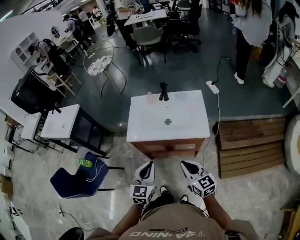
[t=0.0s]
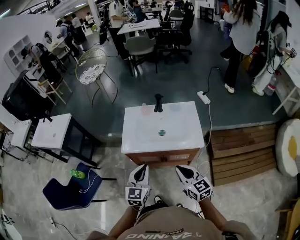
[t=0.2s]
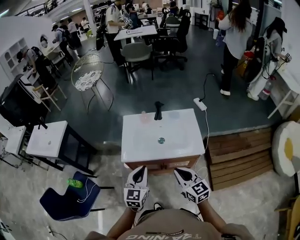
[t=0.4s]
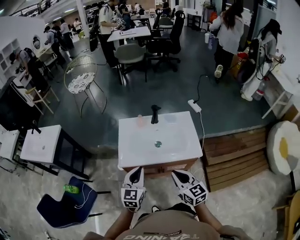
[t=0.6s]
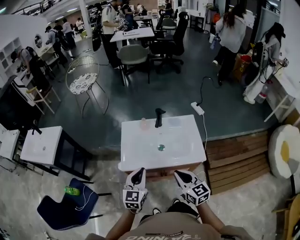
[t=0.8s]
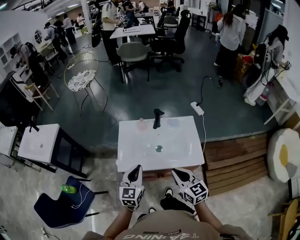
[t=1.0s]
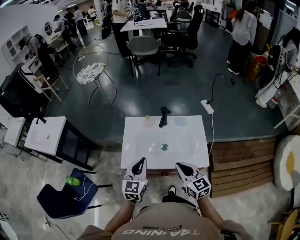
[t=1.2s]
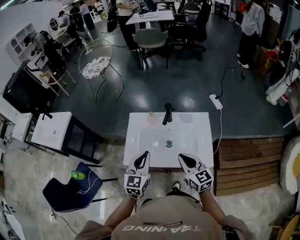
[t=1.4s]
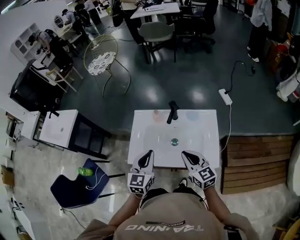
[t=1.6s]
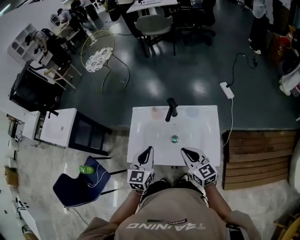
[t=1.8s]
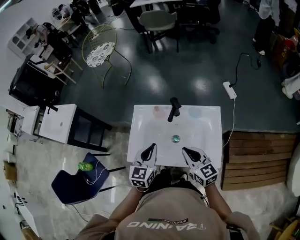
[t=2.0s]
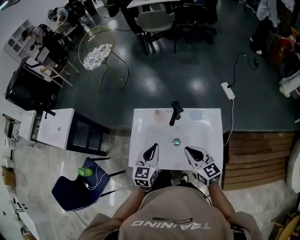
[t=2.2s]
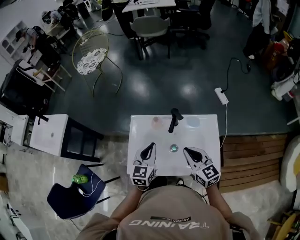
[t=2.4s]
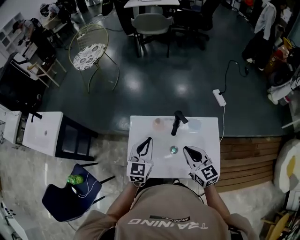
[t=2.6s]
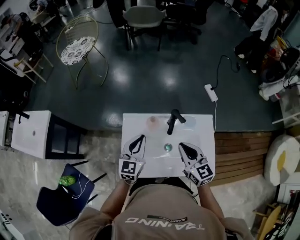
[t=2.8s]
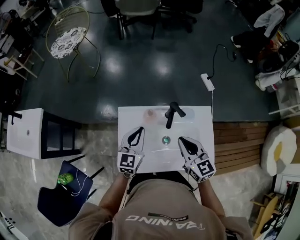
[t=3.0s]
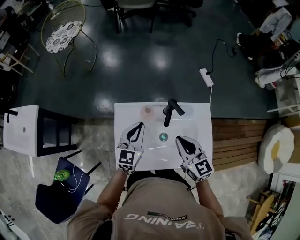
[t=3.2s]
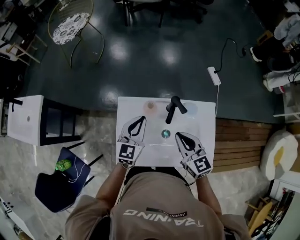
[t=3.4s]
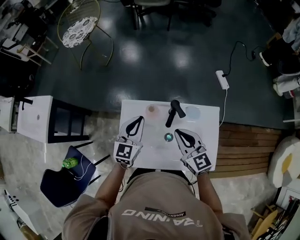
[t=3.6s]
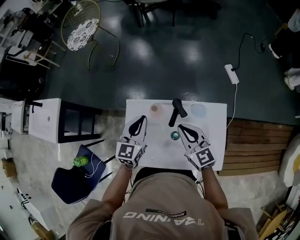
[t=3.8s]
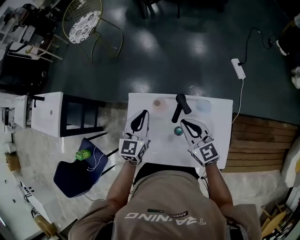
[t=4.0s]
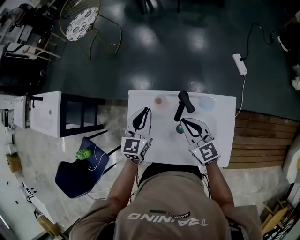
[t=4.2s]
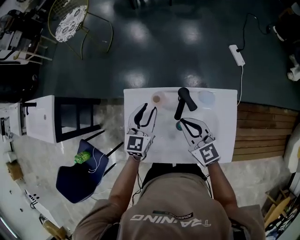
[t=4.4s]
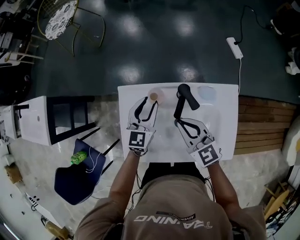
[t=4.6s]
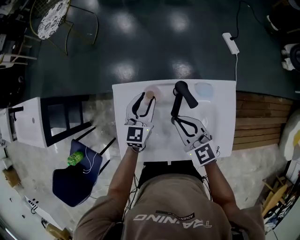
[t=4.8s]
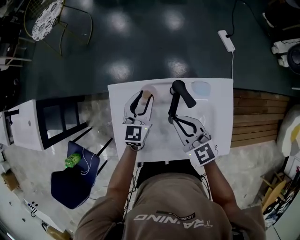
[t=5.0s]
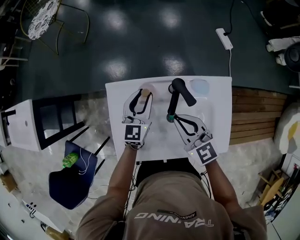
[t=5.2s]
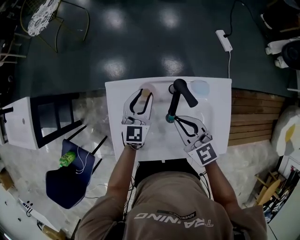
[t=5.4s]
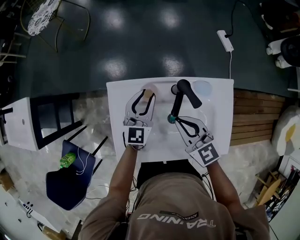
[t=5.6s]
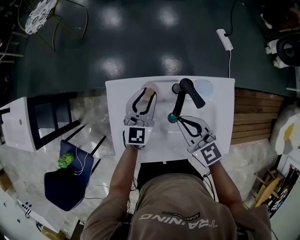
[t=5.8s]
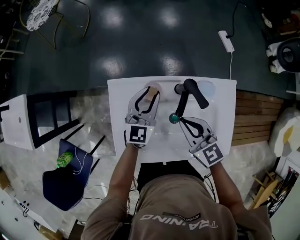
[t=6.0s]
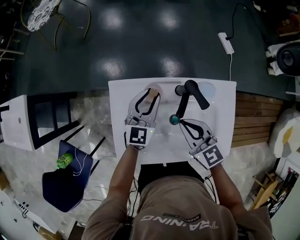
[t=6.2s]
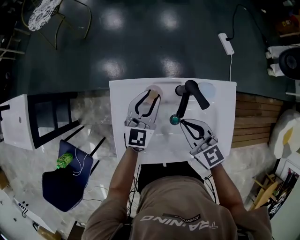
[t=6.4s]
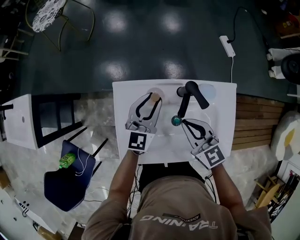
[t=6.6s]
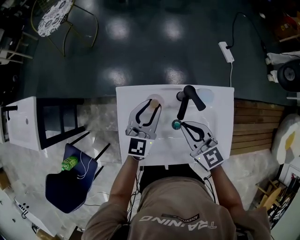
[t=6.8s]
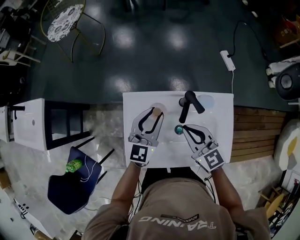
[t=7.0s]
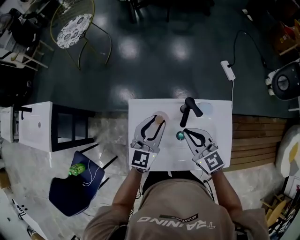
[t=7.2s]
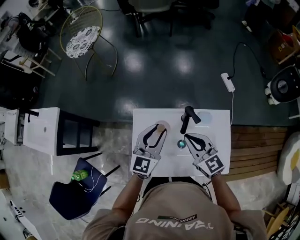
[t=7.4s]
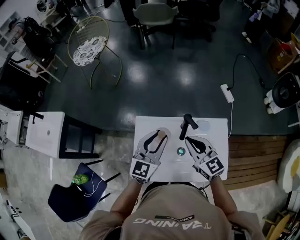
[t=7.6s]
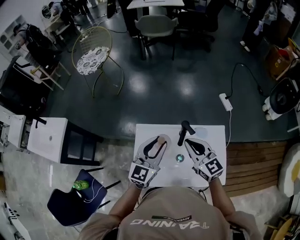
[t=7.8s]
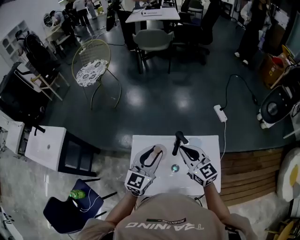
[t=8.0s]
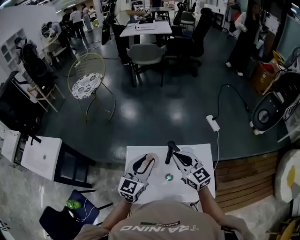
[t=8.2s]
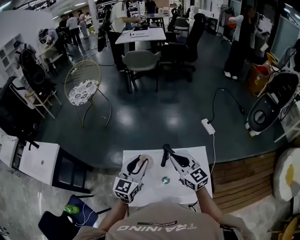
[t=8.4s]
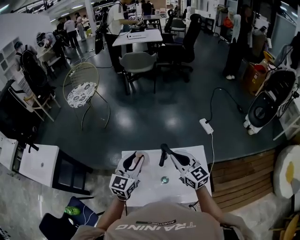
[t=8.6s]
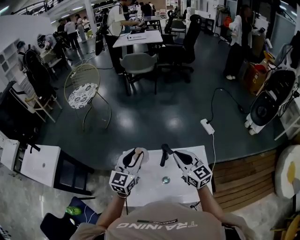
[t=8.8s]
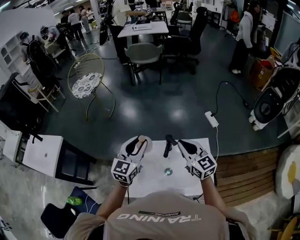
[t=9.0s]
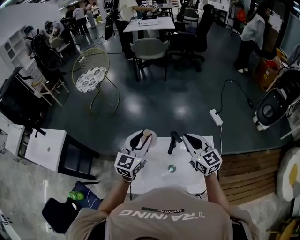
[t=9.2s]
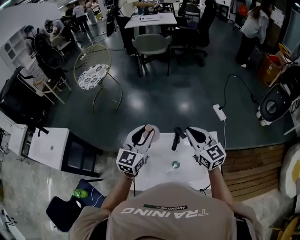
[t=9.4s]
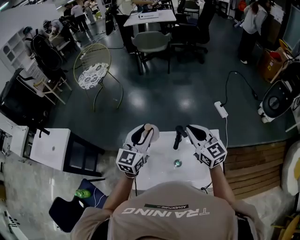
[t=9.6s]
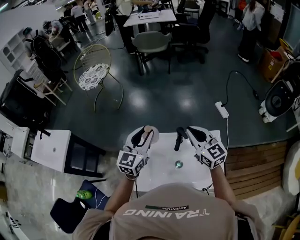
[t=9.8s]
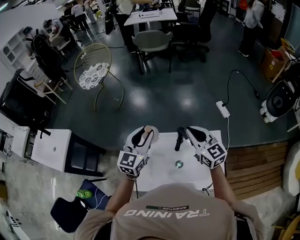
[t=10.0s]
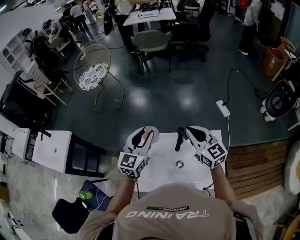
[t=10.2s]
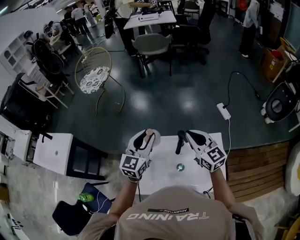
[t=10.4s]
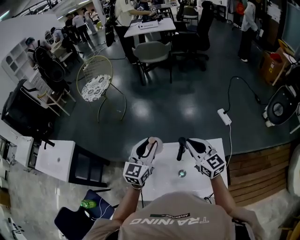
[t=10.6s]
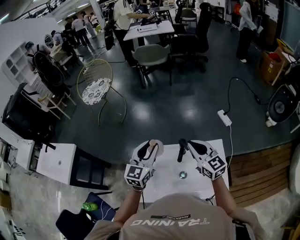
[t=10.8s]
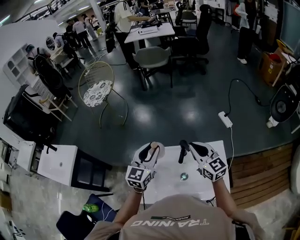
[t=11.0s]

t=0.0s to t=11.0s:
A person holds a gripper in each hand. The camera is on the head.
t=0.0s to t=1.6s: Both grippers move forward, some 25 cm.
t=1.6s to t=3.2s: Both grippers move forward, some 15 cm.
t=3.2s to t=4.8s: The left gripper heads downward and forward, covering approximately 10 cm, and opens up. Meanwhile the right gripper shifts roughly 10 cm downward.
t=4.8s to t=6.2s: The grippers stay close to where they were, moving slightly.
t=6.2s to t=7.8s: The right gripper shifts about 15 cm upward, while the left gripper is displaced upward and backward by roughly 20 cm.
t=7.8s to t=9.4s: Both grippers travel together upward, about 5 cm.
t=9.4s to t=11.0s: The grippers stay close to where they were, moving slightly.

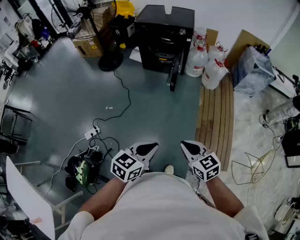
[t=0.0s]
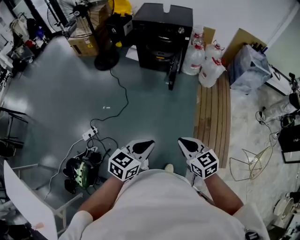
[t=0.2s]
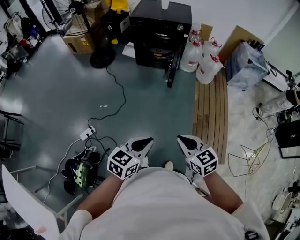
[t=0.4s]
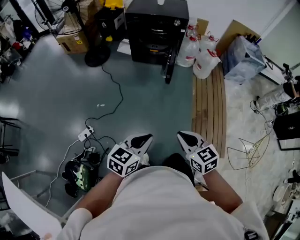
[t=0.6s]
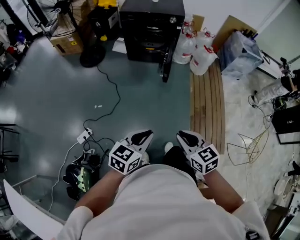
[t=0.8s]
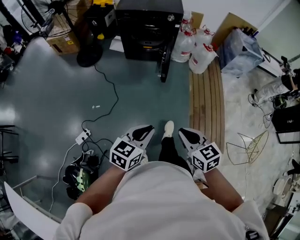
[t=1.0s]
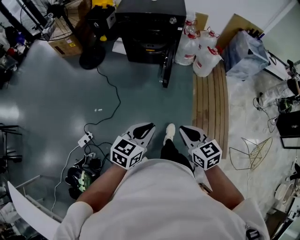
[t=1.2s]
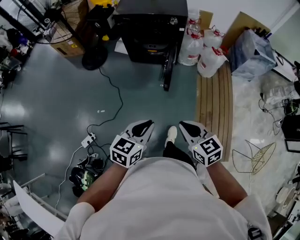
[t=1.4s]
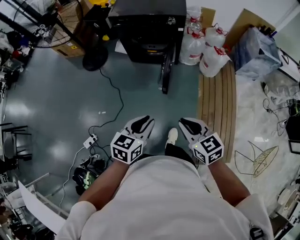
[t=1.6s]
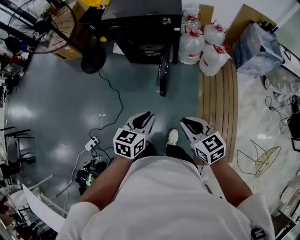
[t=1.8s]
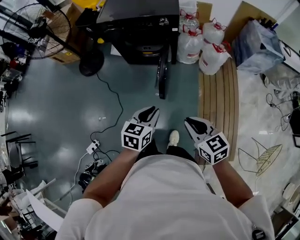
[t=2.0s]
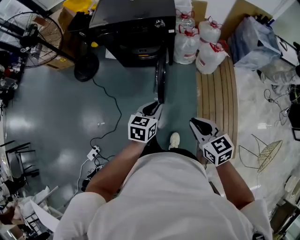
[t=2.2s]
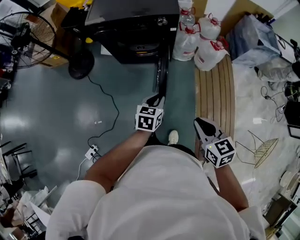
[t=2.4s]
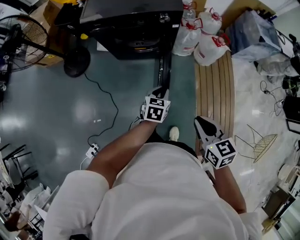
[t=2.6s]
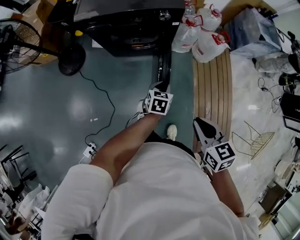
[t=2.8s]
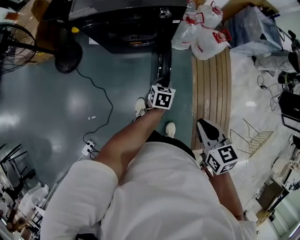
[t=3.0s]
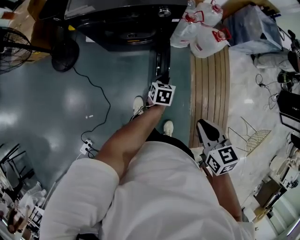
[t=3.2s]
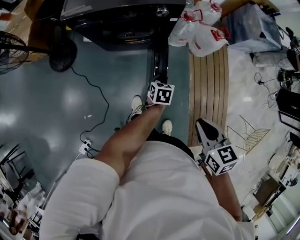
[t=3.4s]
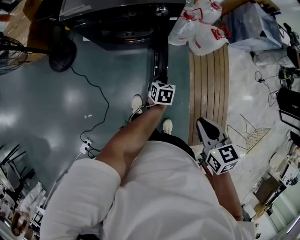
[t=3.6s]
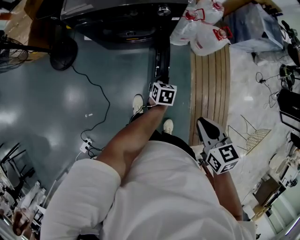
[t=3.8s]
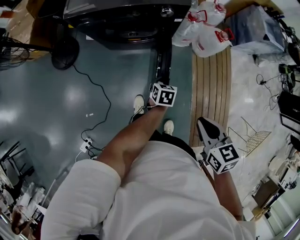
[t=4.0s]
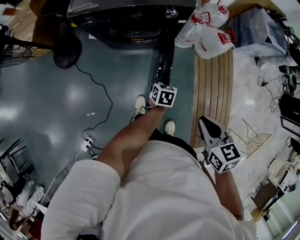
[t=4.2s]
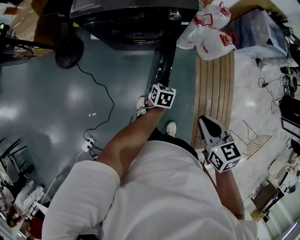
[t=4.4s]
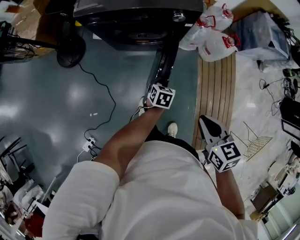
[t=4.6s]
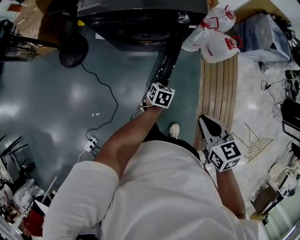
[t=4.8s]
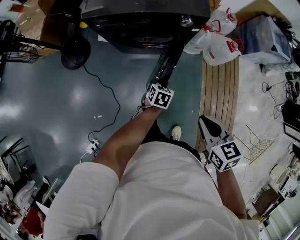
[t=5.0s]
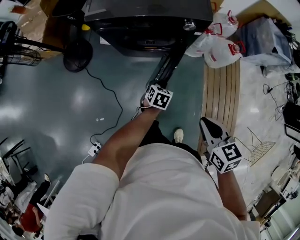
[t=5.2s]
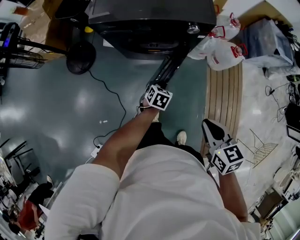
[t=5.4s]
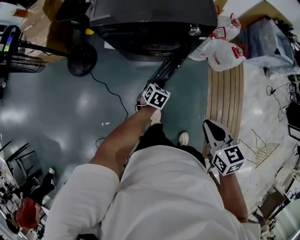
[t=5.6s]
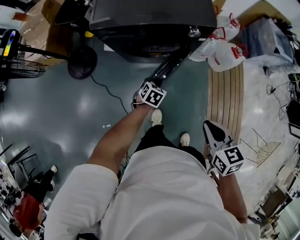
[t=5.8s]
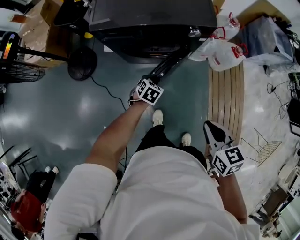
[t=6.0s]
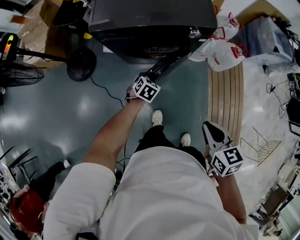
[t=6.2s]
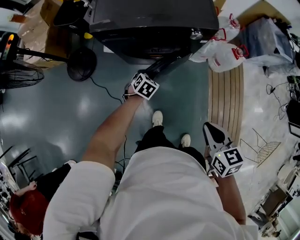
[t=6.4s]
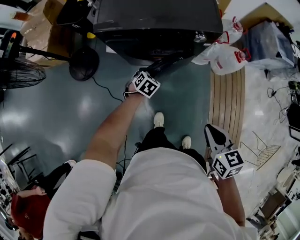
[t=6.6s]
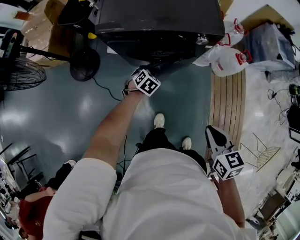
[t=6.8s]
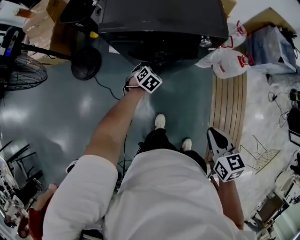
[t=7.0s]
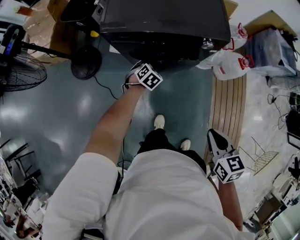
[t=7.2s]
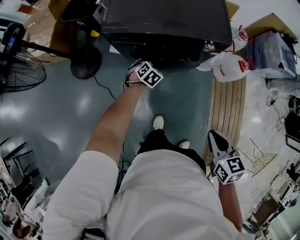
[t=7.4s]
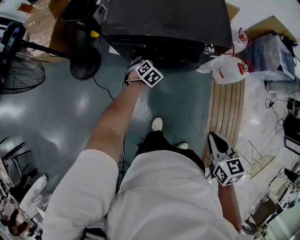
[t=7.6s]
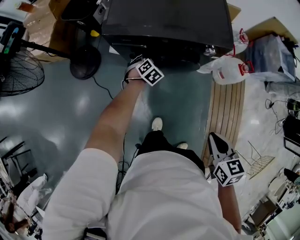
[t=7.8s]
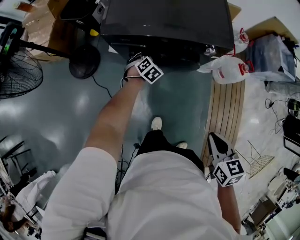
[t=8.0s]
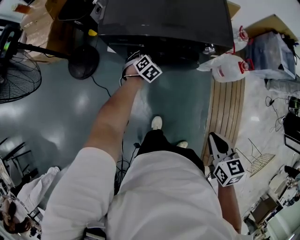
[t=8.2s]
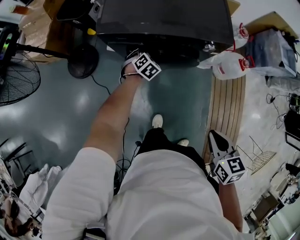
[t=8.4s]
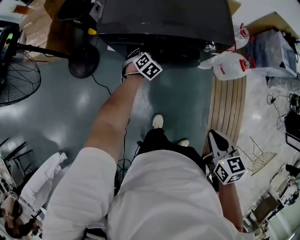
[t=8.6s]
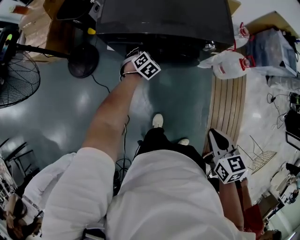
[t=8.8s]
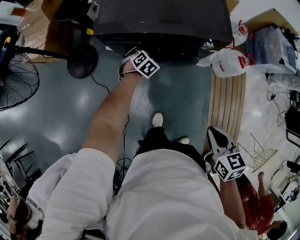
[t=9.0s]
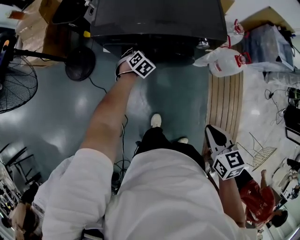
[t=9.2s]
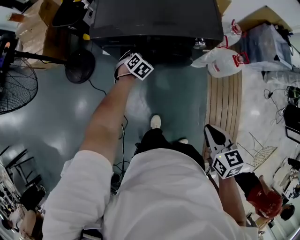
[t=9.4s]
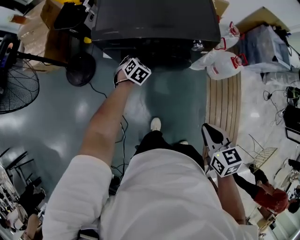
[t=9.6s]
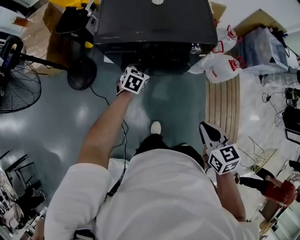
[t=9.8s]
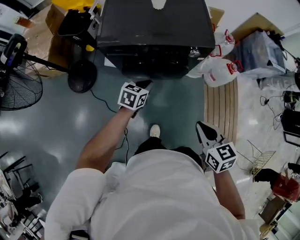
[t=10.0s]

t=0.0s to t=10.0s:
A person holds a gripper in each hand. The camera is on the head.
t=0.0s to t=1.4s: Both grippers move forward, roughly 25 cm.
t=1.4s to t=2.8s: The left gripper moves forward and downward, some 50 cm; the right gripper heads forward, covering some 25 cm, and rotates roughly 20 degrees.
t=2.8s to t=4.2s: The right gripper travels forward by some 5 cm. Meanwhile the left gripper shifts roughly 5 cm downward.
t=4.2s to t=5.8s: The left gripper goes roughly 15 cm to the left and forward. Meanwhile the right gripper shifts about 10 cm to the left and forward.
t=5.8s to t=7.2s: The left gripper goes some 15 cm forward and to the left.
t=7.2s to t=8.6s: The left gripper heads forward, covering approximately 10 cm.
t=8.6s to t=10.0s: The left gripper shifts roughly 20 cm backward and upward, changes its angle by some 40 degrees, and closes up.

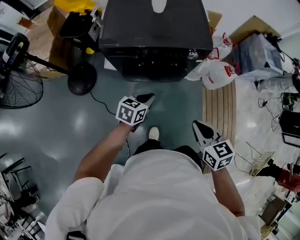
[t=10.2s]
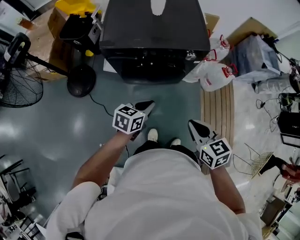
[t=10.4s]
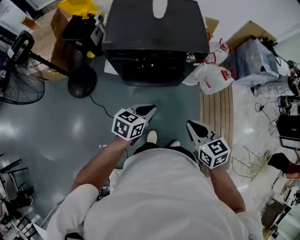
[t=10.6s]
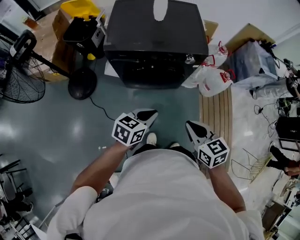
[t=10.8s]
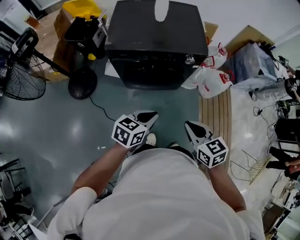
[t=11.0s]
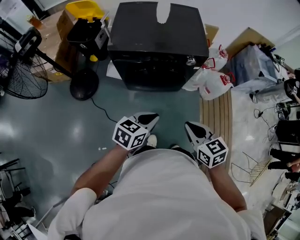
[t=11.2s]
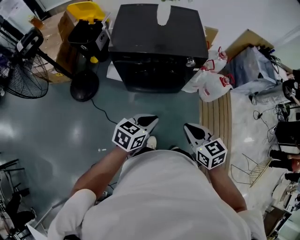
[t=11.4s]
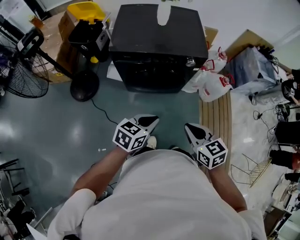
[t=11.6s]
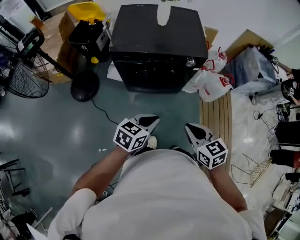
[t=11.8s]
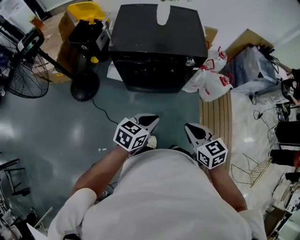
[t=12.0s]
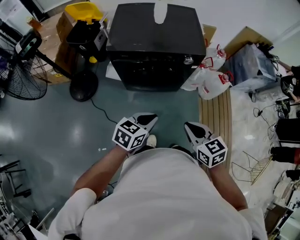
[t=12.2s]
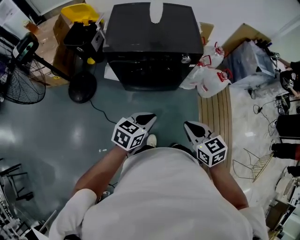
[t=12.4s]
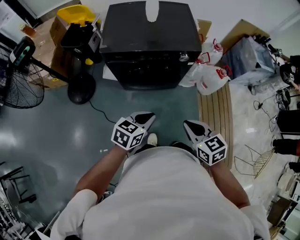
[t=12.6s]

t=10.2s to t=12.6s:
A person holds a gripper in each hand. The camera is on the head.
t=10.2s to t=11.4s: The left gripper shifts about 15 cm backward and upward, while the right gripper ends up about 5 cm from where it was.
t=11.4s to t=12.6s: The grippers move only a little.
